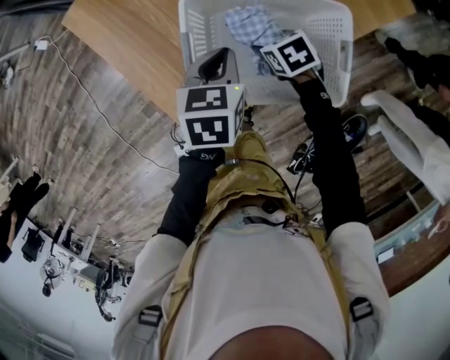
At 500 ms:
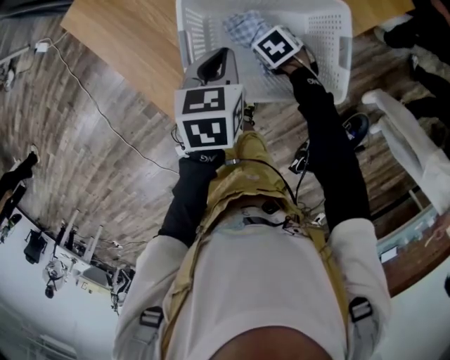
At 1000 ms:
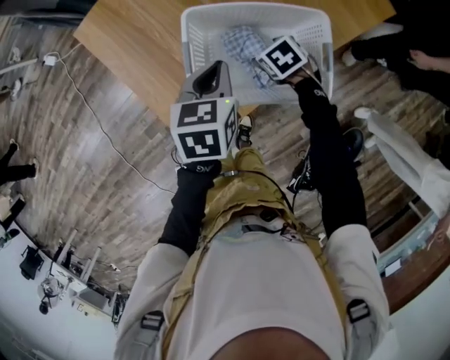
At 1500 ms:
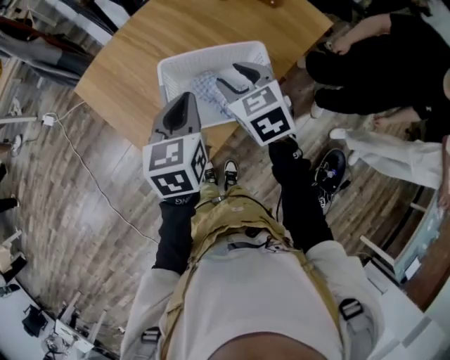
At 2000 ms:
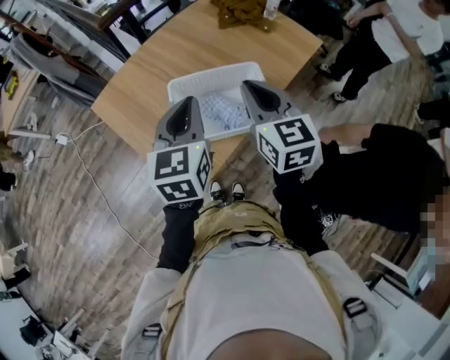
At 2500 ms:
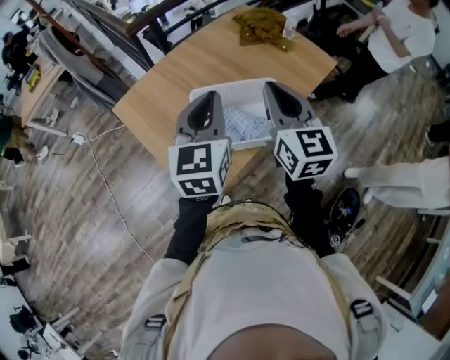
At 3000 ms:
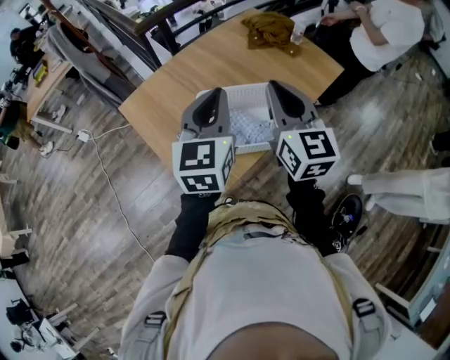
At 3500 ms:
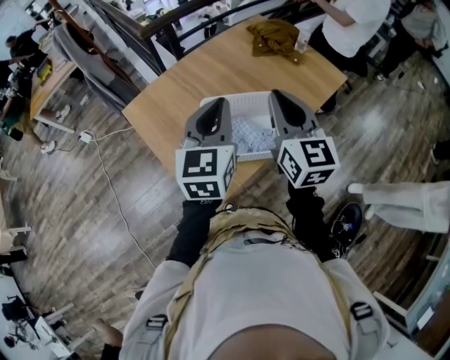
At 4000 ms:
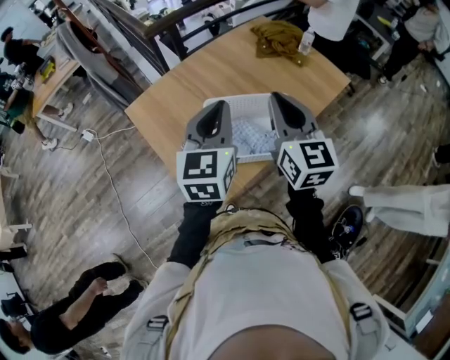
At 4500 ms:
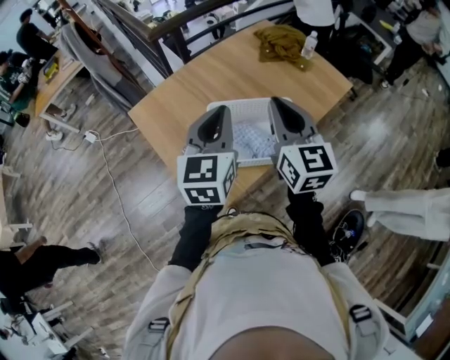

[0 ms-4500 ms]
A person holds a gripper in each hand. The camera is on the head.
0 ms to 2000 ms: Both grippers move upward, about 35 cm. The right gripper points its fingers approximately 50 degrees further upward, and closes its fingers. The left gripper points its fingers about 30 degrees further upward.
2000 ms to 4500 ms: The right gripper shifts by approximately 5 cm.

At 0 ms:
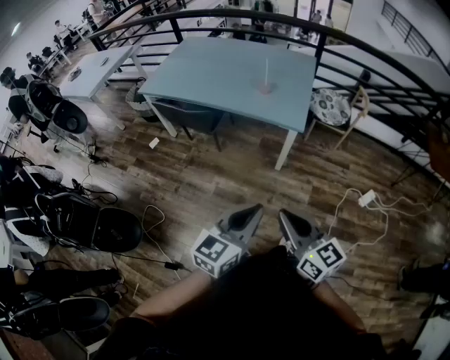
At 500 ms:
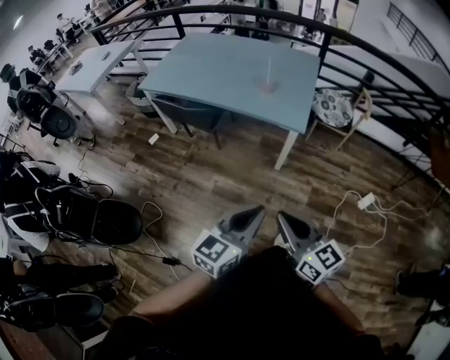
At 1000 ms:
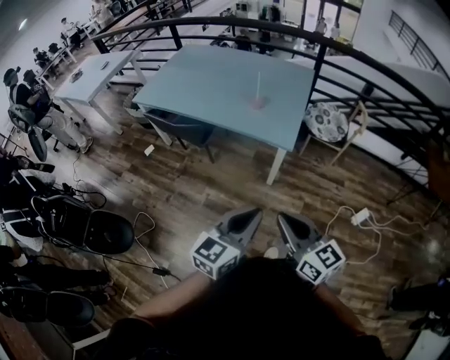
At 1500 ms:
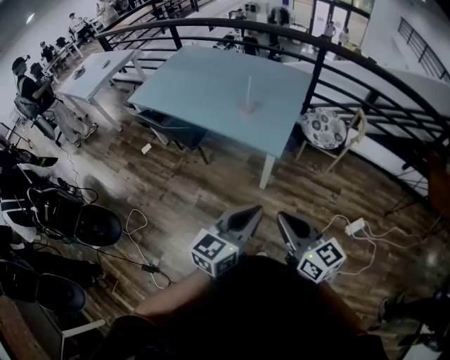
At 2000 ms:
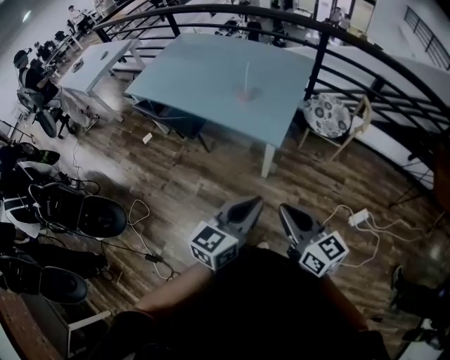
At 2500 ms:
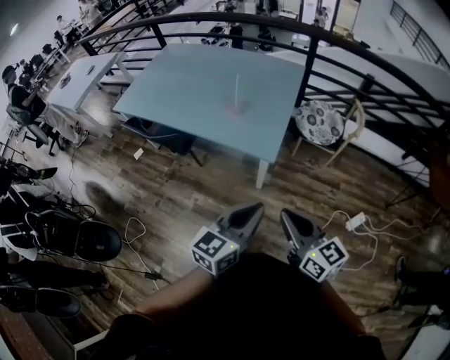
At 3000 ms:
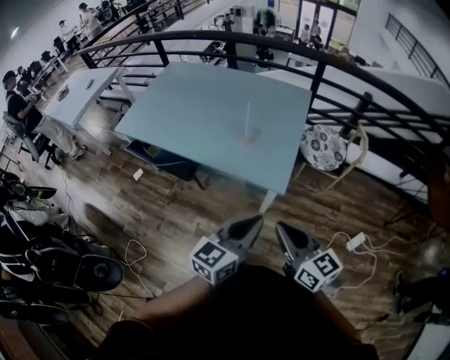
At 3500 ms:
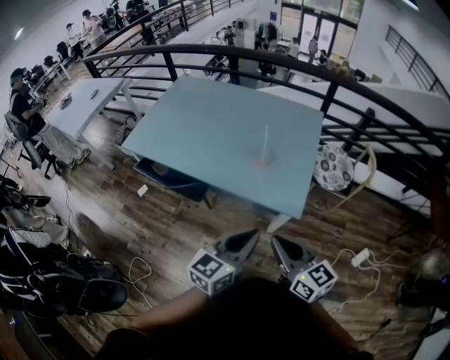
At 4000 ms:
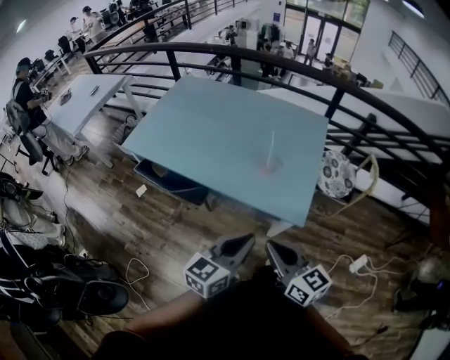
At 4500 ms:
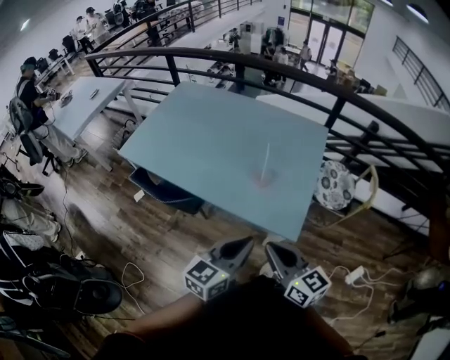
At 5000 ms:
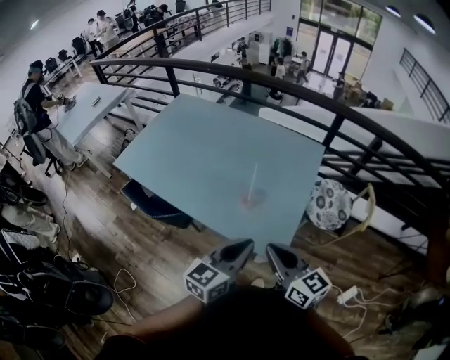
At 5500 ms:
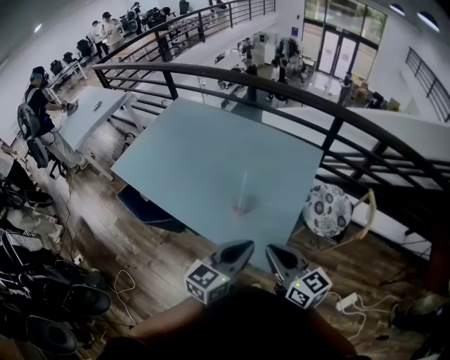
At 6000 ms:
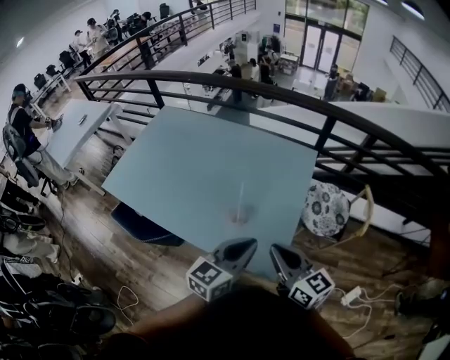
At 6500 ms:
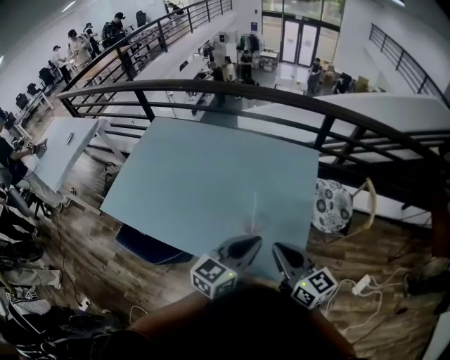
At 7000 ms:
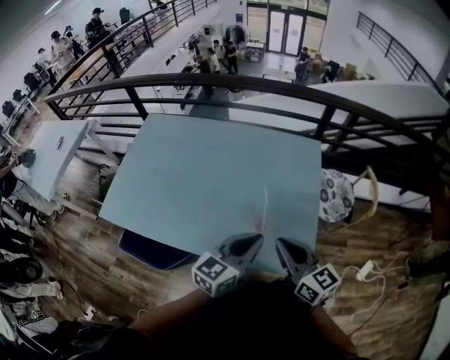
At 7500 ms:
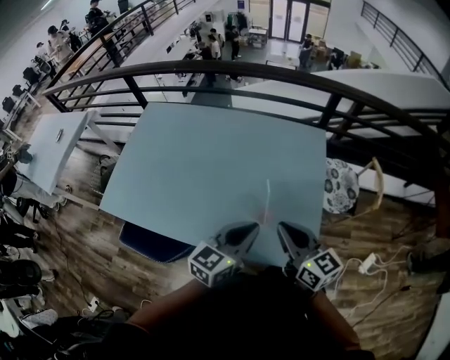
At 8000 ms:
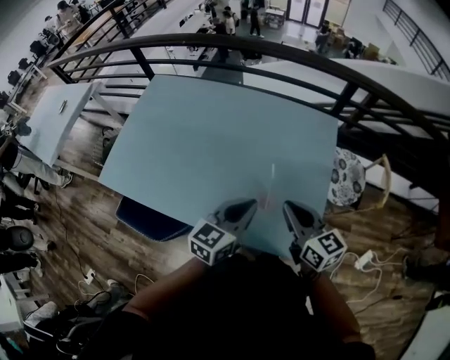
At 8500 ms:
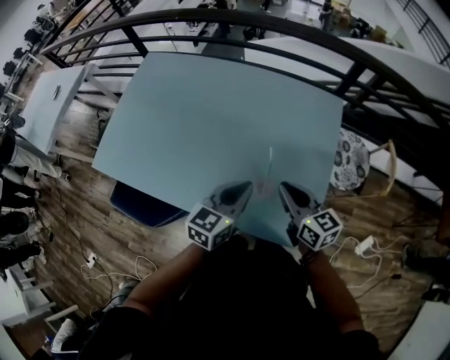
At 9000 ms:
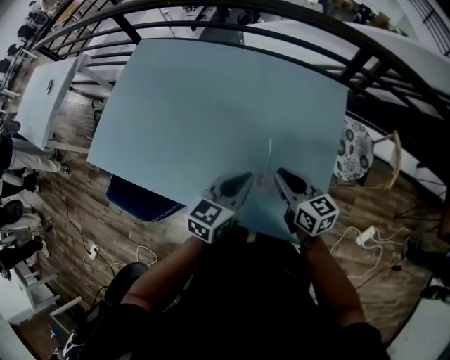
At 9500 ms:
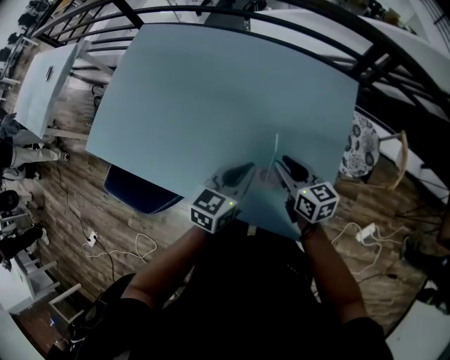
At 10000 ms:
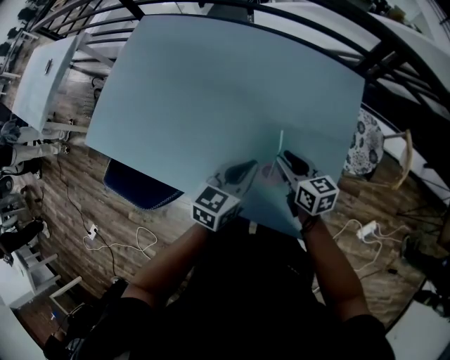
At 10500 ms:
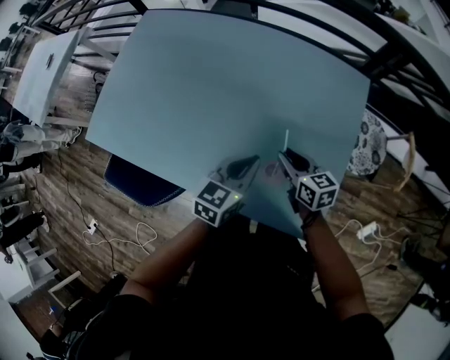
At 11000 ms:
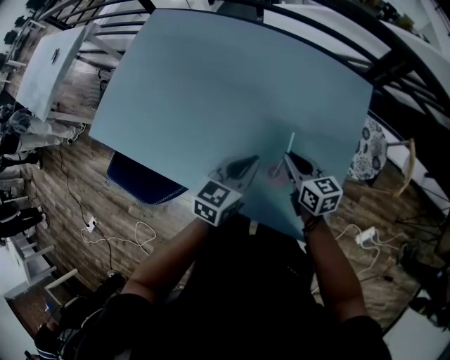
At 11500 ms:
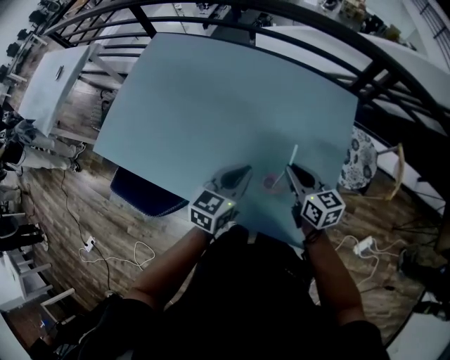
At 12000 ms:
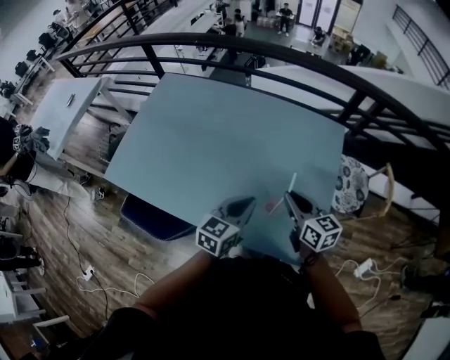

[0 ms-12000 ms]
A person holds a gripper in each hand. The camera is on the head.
0 ms to 2000 ms: The grippers both shift to the right and forward by approximately 25 cm.
2000 ms to 4000 ms: The left gripper moves forward and to the left, about 30 cm; the right gripper travels to the left and forward by about 30 cm.
4000 ms to 6000 ms: The grippers both shift forward and to the right by about 30 cm.
6000 ms to 8000 ms: The right gripper heads forward and to the left, covering some 15 cm. Meanwhile the left gripper travels to the left, forward and downward by some 20 cm.
8000 ms to 10000 ms: The left gripper shifts roughly 15 cm downward and forward. Meanwhile the right gripper is displaced downward and forward by approximately 20 cm, and opens.
10000 ms to 12000 ms: The left gripper shifts approximately 5 cm upward; the right gripper shifts about 15 cm upward.

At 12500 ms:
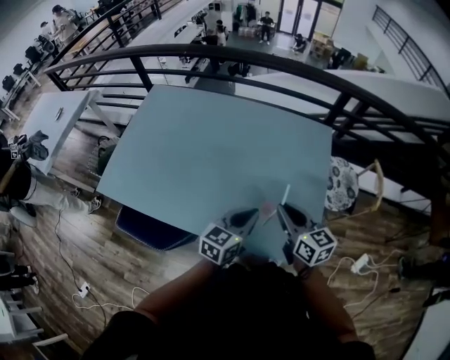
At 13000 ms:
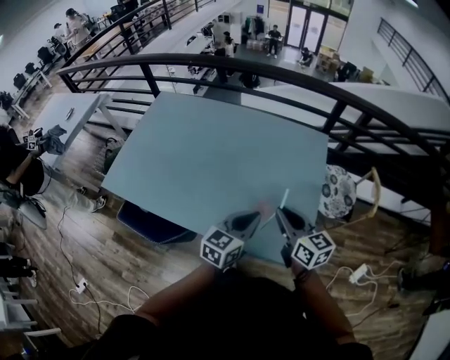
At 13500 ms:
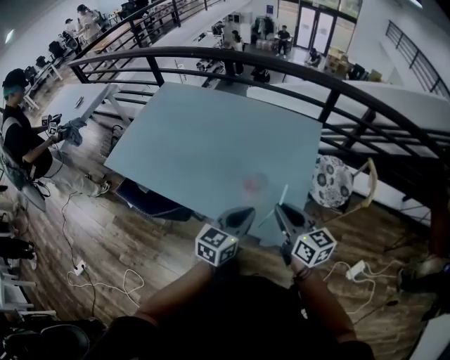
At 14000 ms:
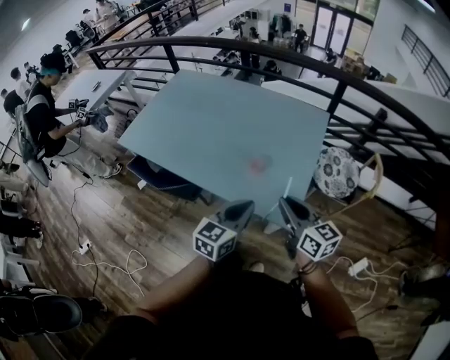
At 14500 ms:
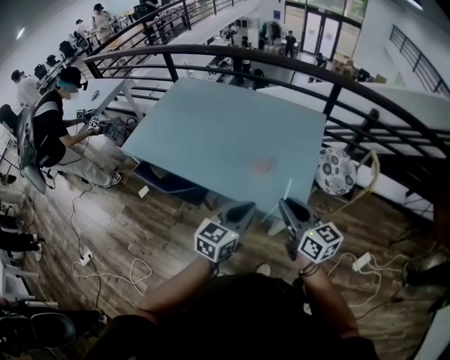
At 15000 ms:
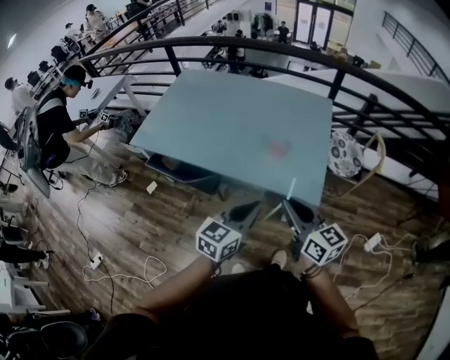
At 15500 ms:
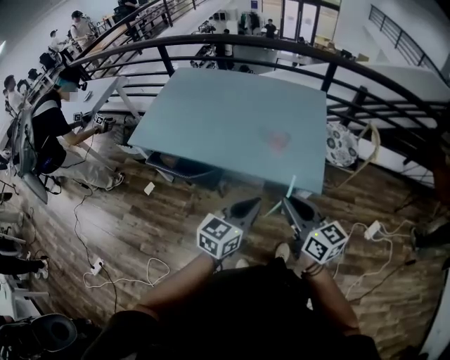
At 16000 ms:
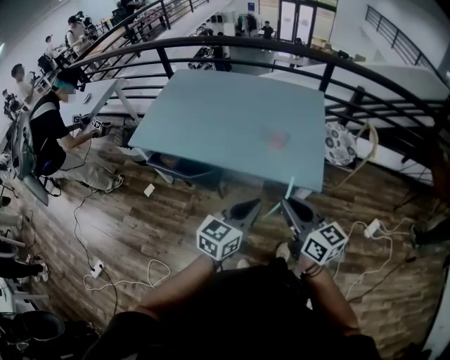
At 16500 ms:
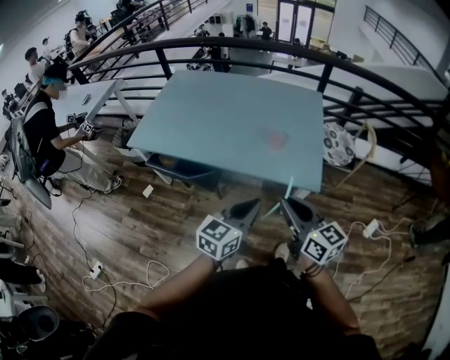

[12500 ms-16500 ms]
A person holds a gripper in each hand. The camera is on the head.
12500 ms to 14500 ms: Both grippers move backward, about 25 cm.
14500 ms to 16500 ms: The two grippers go roughly 20 cm backward and to the left.

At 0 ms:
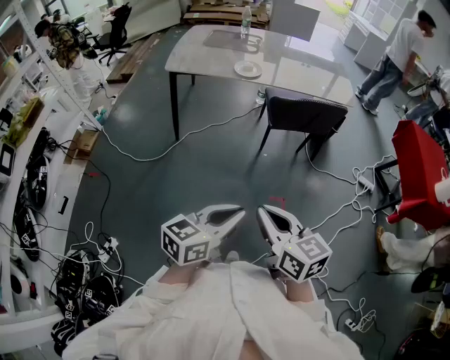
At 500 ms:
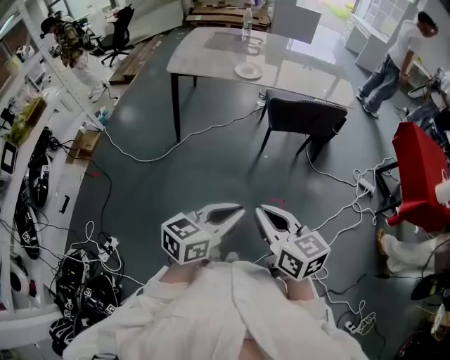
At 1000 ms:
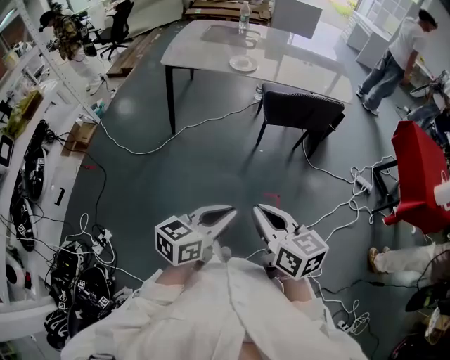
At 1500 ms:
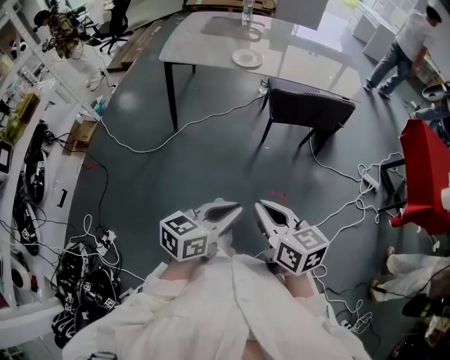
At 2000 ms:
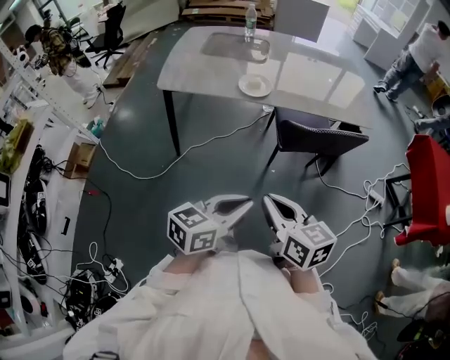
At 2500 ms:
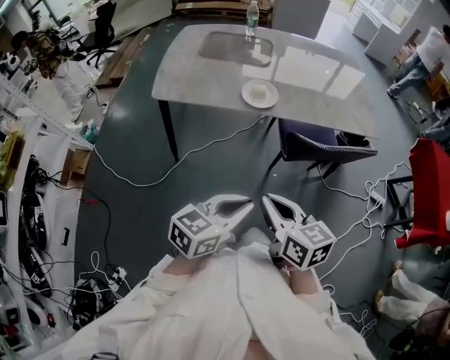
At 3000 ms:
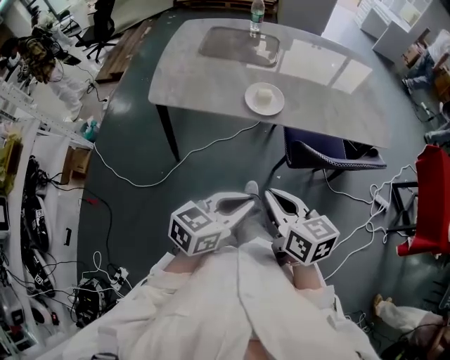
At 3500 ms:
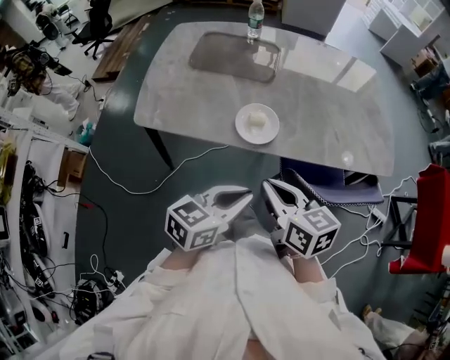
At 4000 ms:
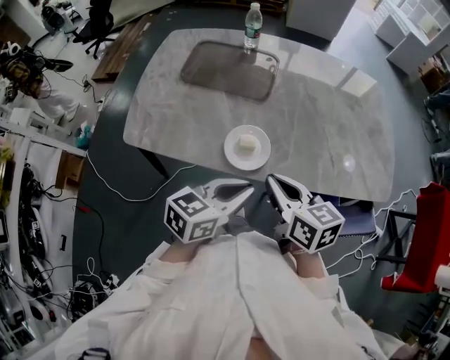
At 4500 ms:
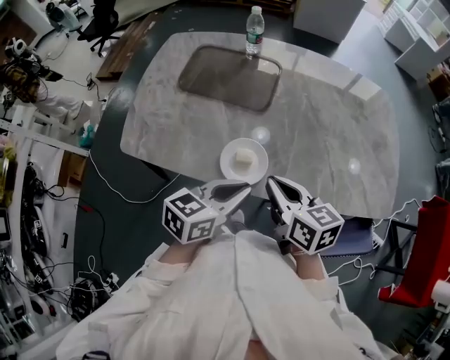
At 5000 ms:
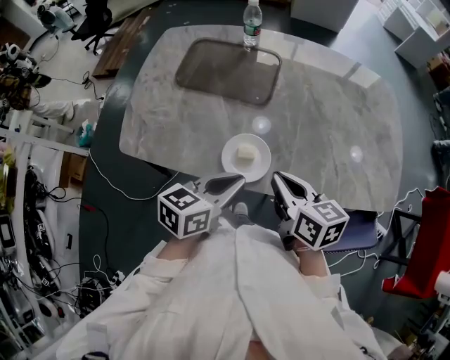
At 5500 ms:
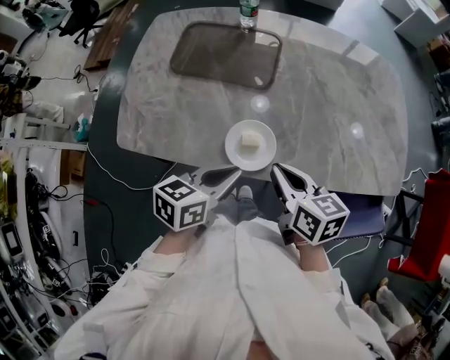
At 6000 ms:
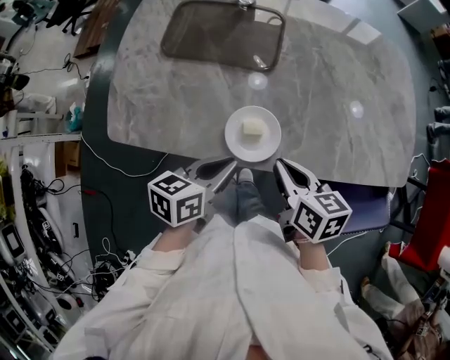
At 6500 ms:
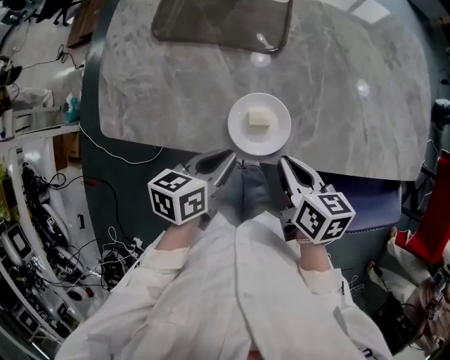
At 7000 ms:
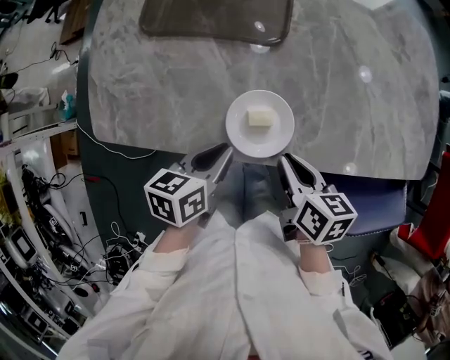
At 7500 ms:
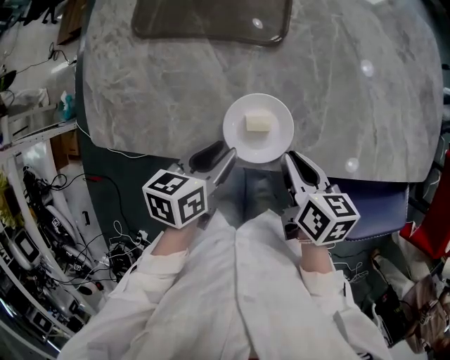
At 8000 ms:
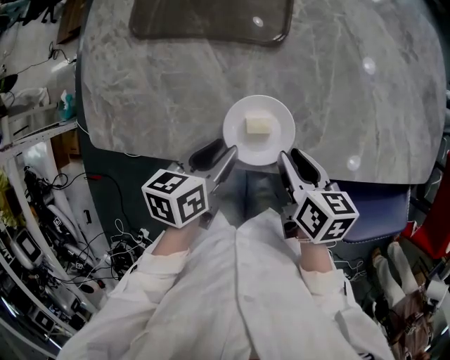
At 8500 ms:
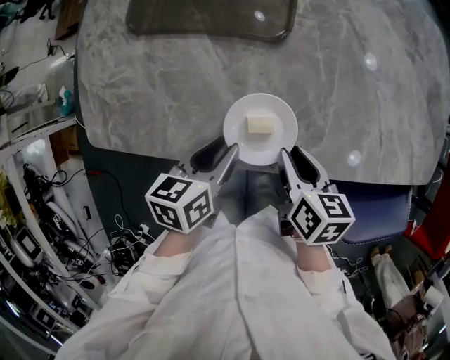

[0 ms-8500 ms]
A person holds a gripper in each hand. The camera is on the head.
0 ms to 2000 ms: The grippers both shift forward by about 25 cm.
2000 ms to 4000 ms: The two grippers travel together, forward, roughly 40 cm.
4000 ms to 6500 ms: The right gripper goes roughly 15 cm downward and forward, and swivels some 20 degrees; the left gripper shifts about 15 cm downward, to the left and forward, and swivels some 30 degrees.
6500 ms to 8500 ms: The left gripper shifts by approximately 5 cm, and opens up. Meanwhile the right gripper shifts some 5 cm downward, and opens its fingers.
